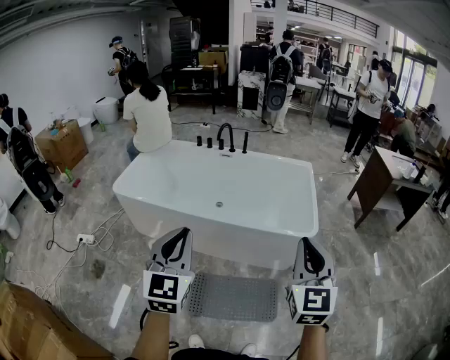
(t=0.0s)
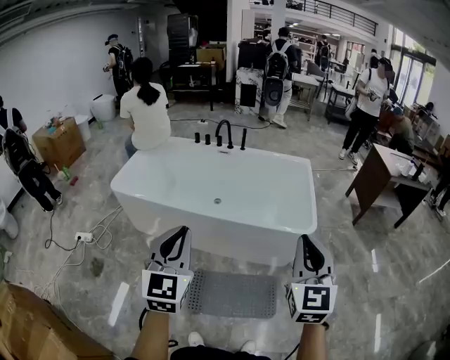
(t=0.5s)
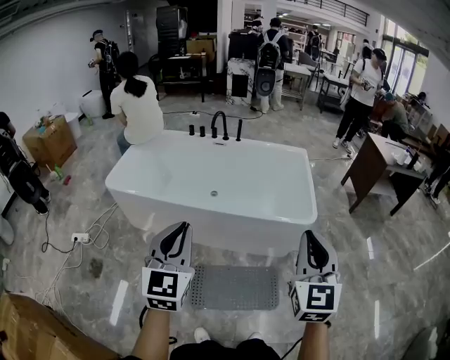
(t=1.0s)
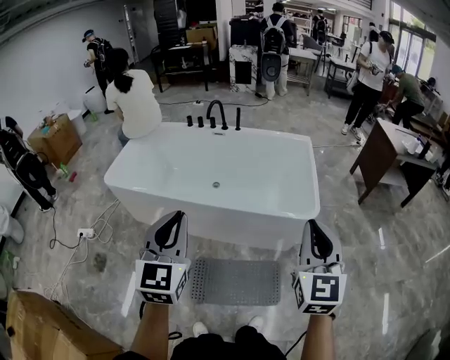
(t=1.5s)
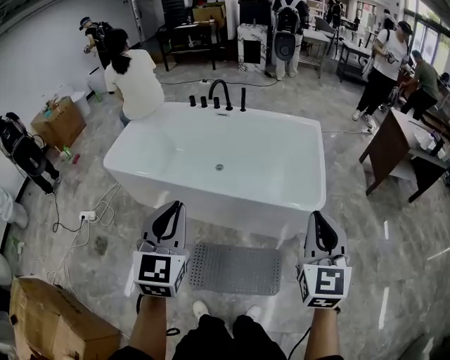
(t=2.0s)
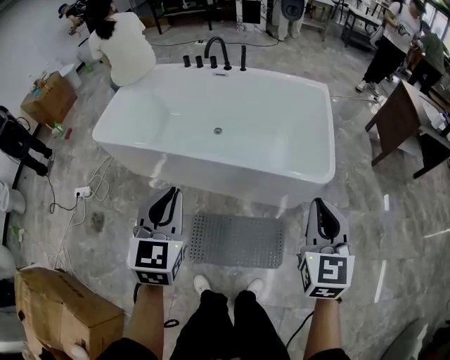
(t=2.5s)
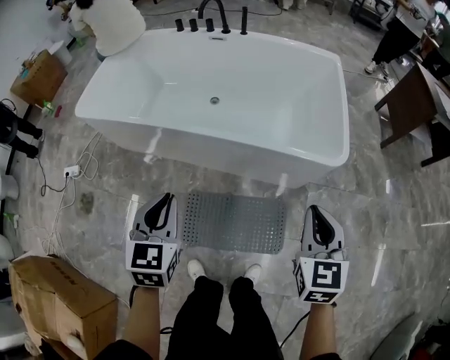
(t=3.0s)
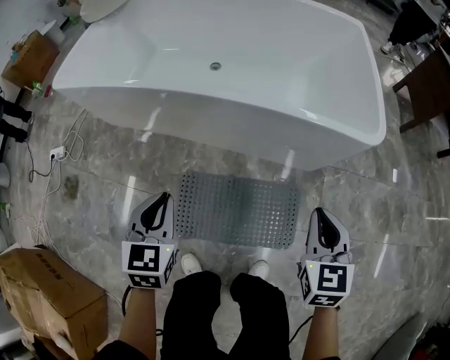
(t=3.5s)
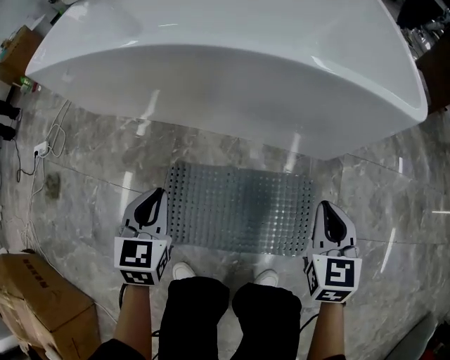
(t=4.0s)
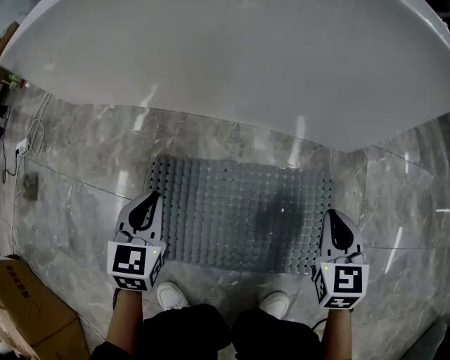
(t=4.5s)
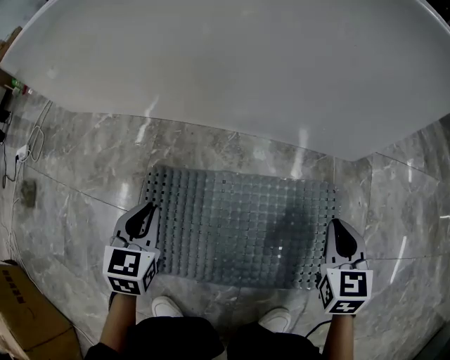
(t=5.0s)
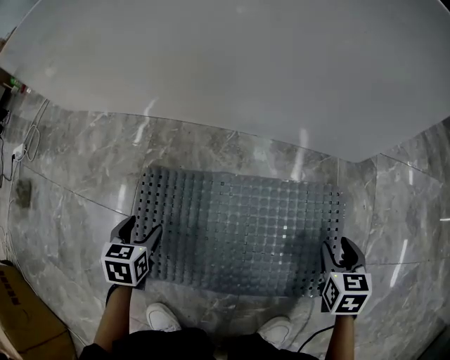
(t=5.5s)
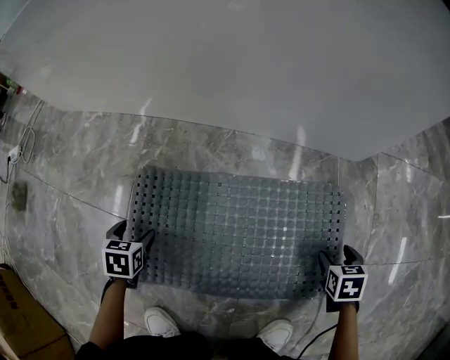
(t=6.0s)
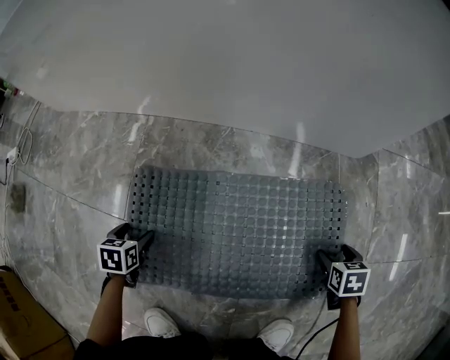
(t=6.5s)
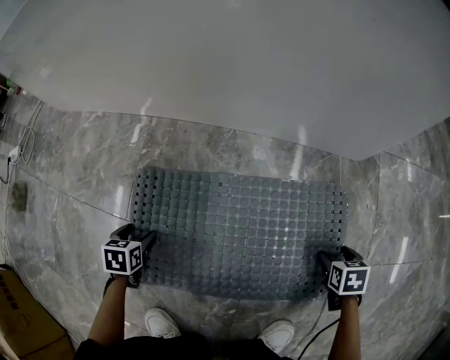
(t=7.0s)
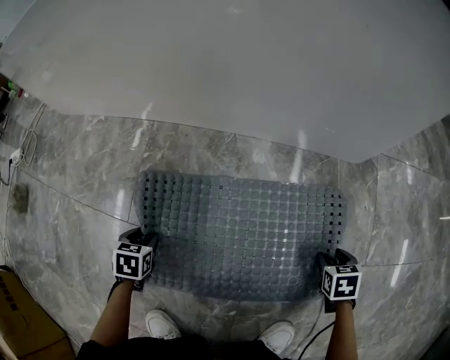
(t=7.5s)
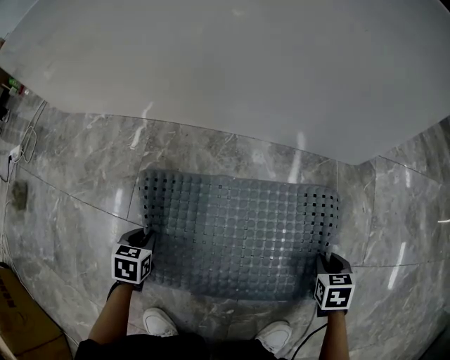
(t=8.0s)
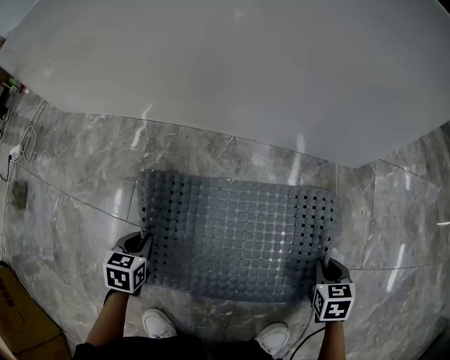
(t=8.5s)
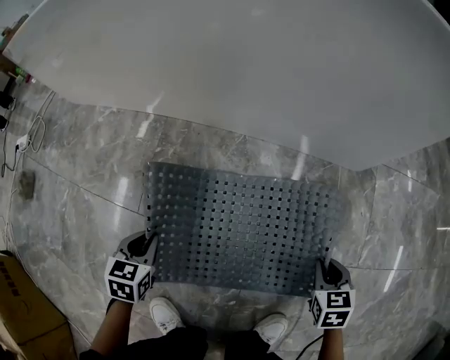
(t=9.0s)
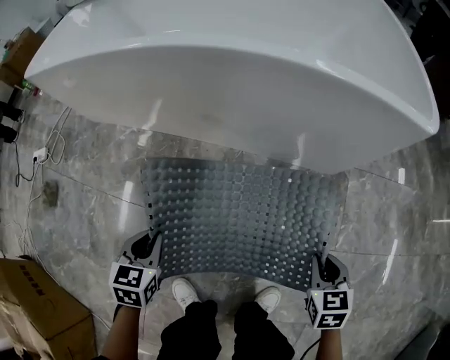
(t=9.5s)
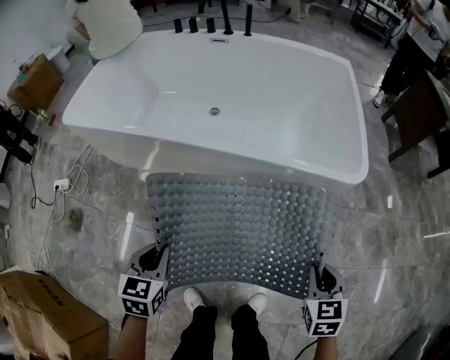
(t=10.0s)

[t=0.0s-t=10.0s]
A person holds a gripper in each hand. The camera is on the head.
t=0.0s to t=2.0s: The left gripper travels forward by roughly 10 cm; the right gripper is displaced forward, to the right and downward by some 15 cm.
t=2.0s to t=4.0s: Both grippers move downward, some 60 cm. The left gripper turns by some 30 degrees, while the right gripper turns by approximately 30 degrees.
t=4.0s to t=6.0s: Both grippers travel together downward, about 40 cm. The left gripper angles its fingers downward, by some 30 degrees, and opens up. The right gripper angles its fingers downward, by roughly 40 degrees, and opens up.
t=6.0s to t=8.0s: The left gripper closes its fingers; the right gripper closes its fingers.
t=8.0s to t=10.0s: Both grippers move upward, about 60 cm. The left gripper turns by roughly 20 degrees, while the right gripper turns by about 20 degrees.

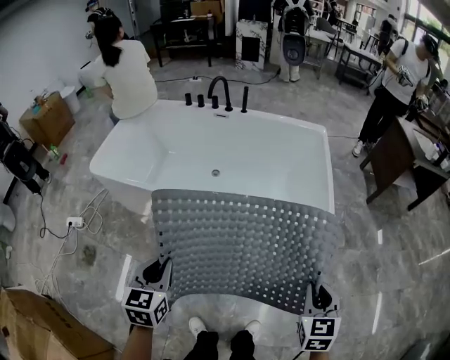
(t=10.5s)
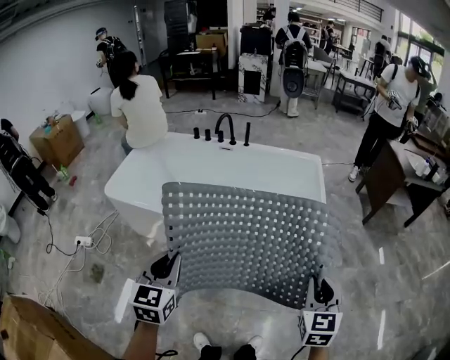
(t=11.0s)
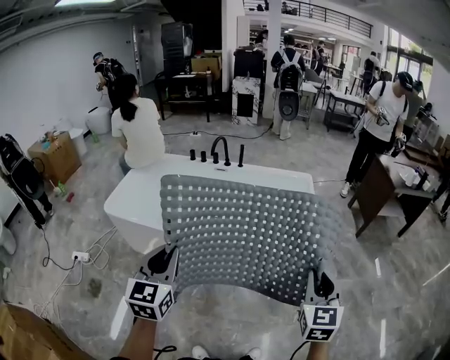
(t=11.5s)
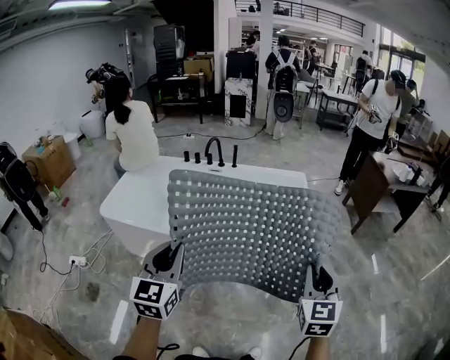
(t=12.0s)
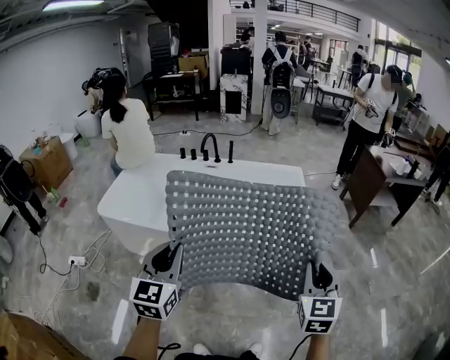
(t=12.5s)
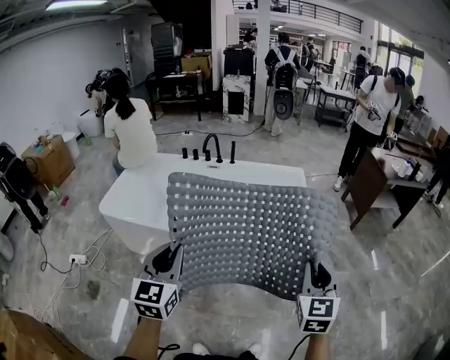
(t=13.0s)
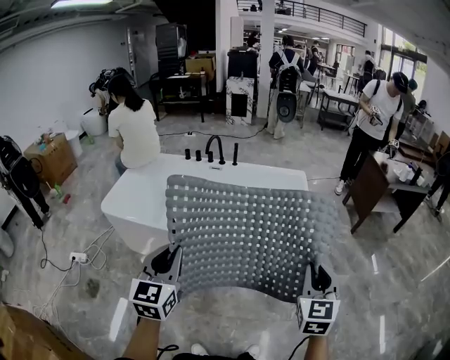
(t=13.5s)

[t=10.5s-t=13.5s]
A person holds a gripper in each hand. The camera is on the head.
t=10.5s to t=12.0s: The two grippers go some 20 cm upward. The right gripper changes its angle by about 20 degrees. Meanwhile the left gripper rotates about 30 degrees.
t=12.0s to t=13.5s: The grippers make only small movements.

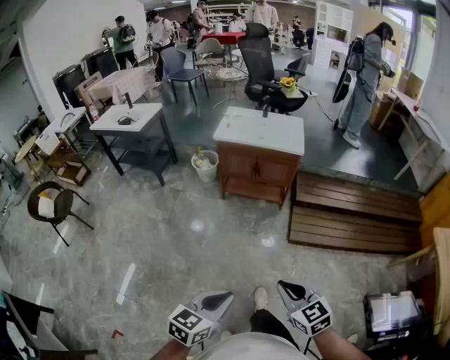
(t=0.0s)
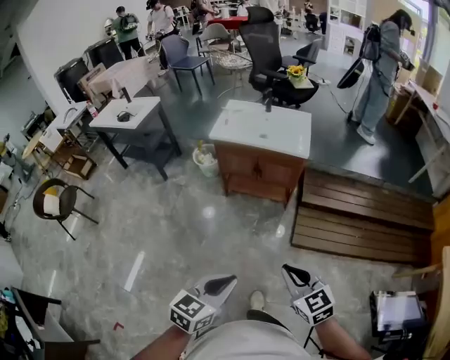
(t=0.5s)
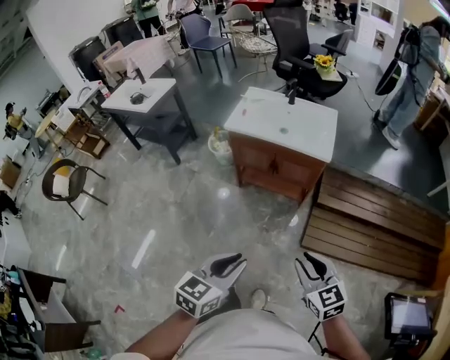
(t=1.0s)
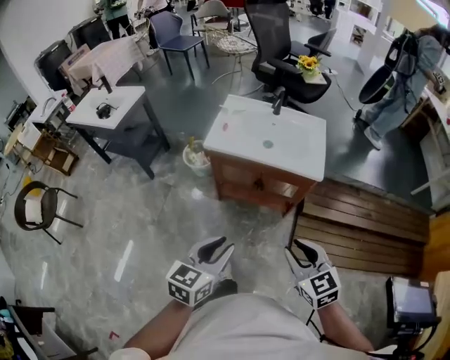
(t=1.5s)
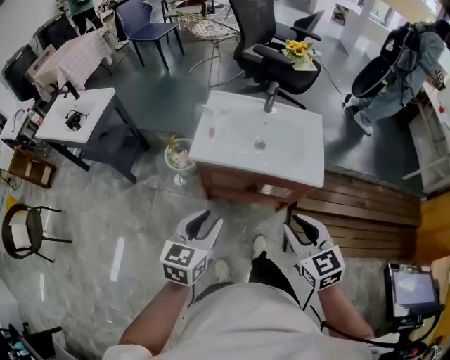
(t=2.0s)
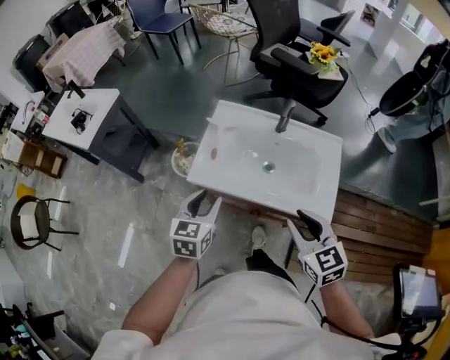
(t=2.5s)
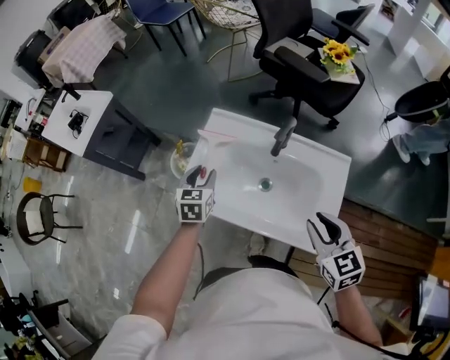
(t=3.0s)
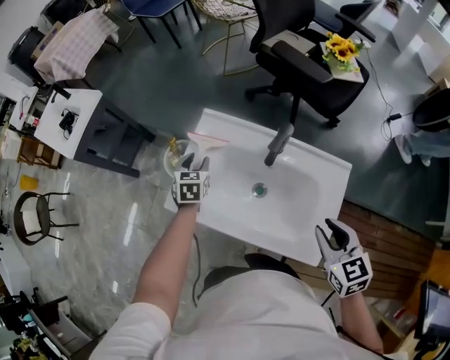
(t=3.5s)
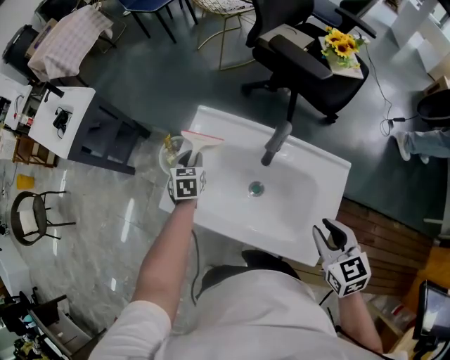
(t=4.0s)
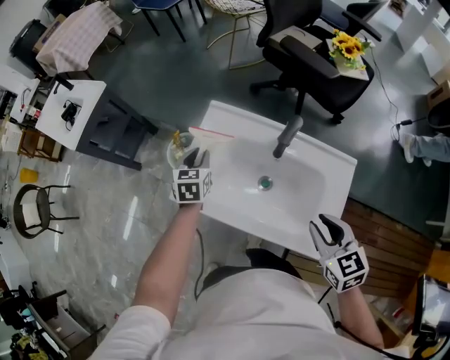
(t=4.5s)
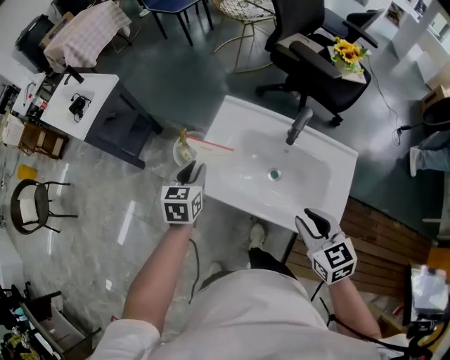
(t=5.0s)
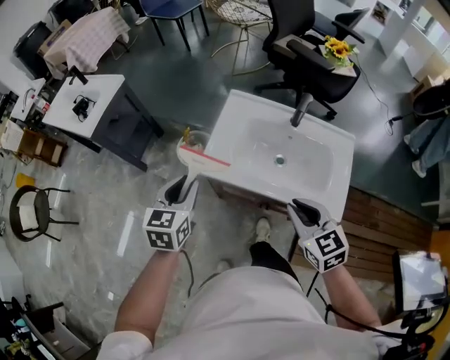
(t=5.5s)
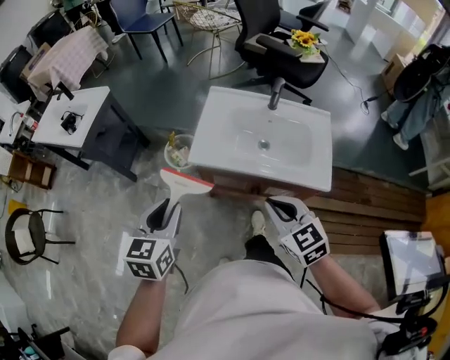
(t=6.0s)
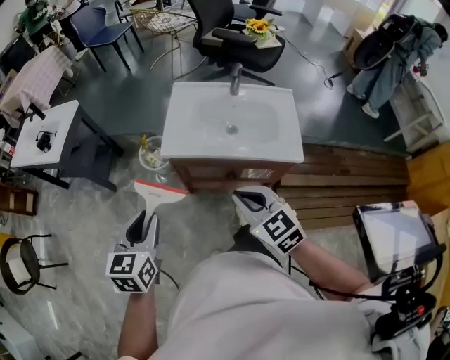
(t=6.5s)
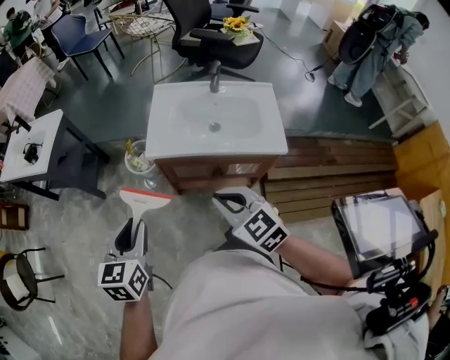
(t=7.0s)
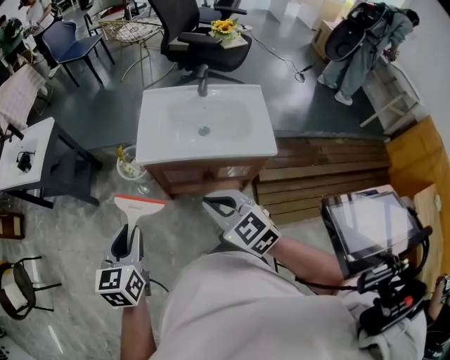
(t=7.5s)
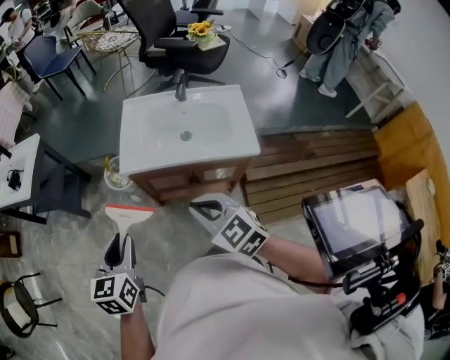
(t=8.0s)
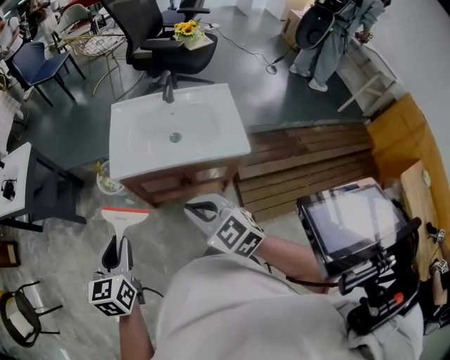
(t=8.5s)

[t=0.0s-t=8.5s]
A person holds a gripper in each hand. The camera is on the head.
t=0.0s to t=2.0s: The two grippers travel together, forward, approximately 70 cm. The left gripper opens its fingers. The right gripper opens up.
t=2.0s to t=4.0s: The pair of grippers is taken forward and to the right, some 40 cm. The left gripper travels downward by some 20 cm, and changes its angle by about 40 degrees.
t=4.0s to t=6.5s: The two grippers travel together, backward and to the left, roughly 40 cm. The left gripper heads upward, covering some 25 cm, and changes its angle by about 20 degrees, while the right gripper closes.
t=6.5s to t=8.5s: The grippers stay close to where they were, moving slightly.

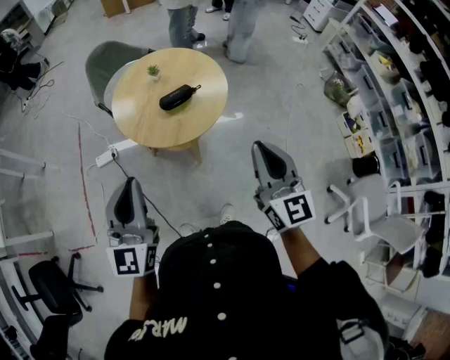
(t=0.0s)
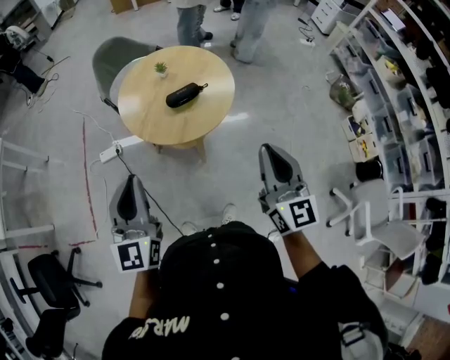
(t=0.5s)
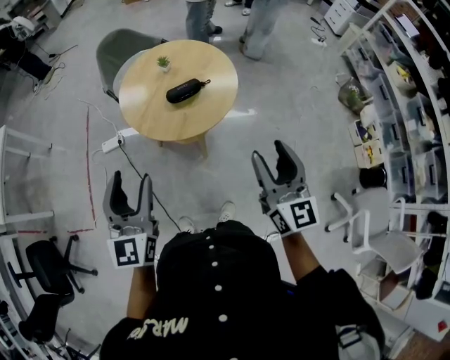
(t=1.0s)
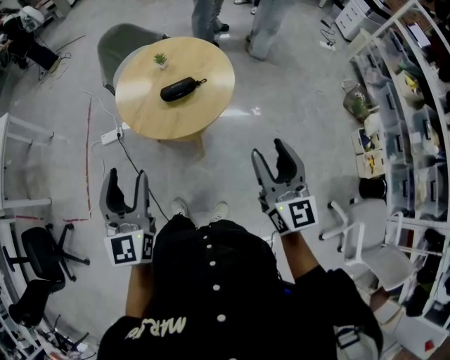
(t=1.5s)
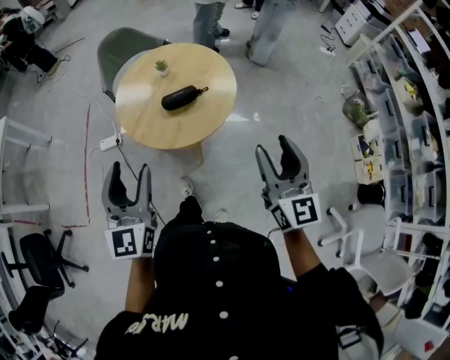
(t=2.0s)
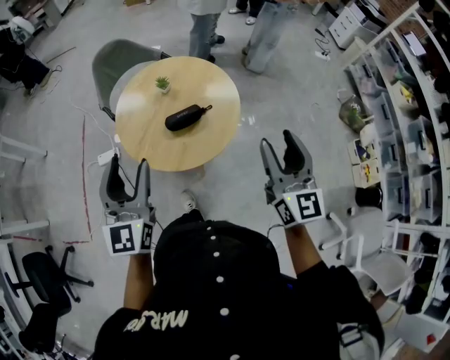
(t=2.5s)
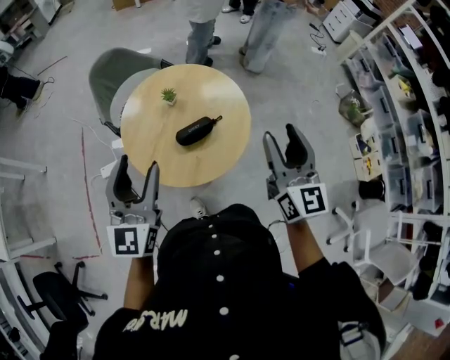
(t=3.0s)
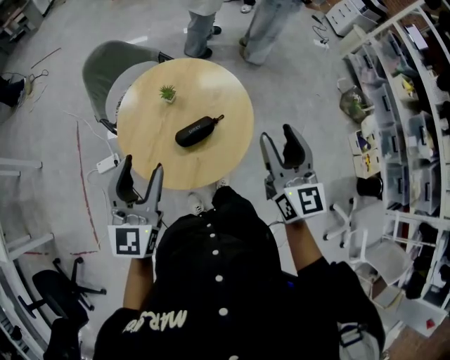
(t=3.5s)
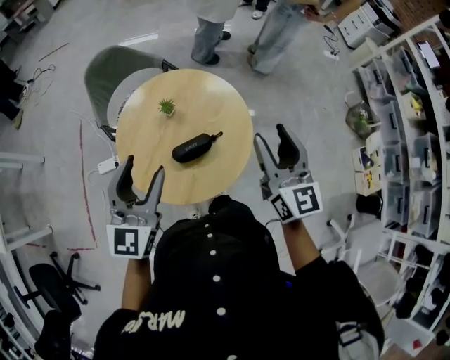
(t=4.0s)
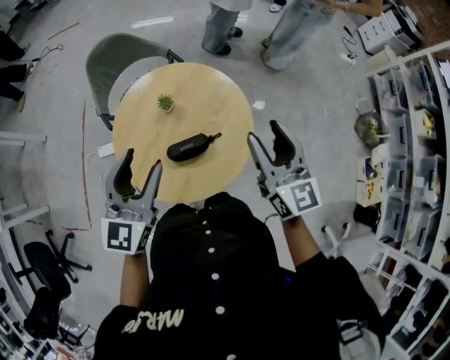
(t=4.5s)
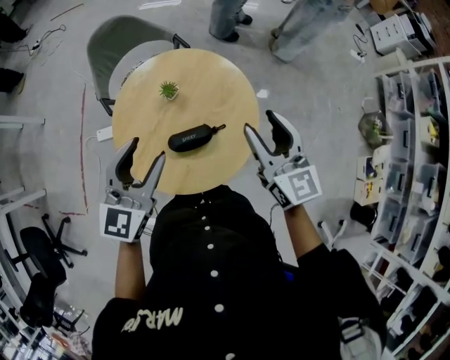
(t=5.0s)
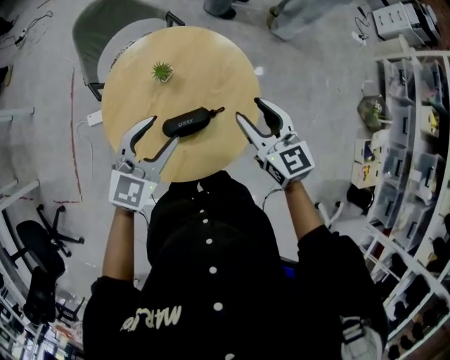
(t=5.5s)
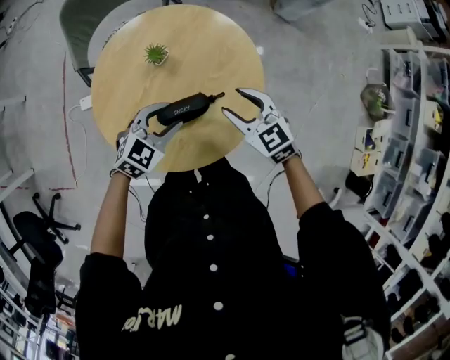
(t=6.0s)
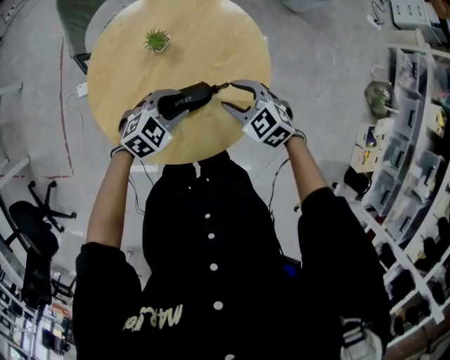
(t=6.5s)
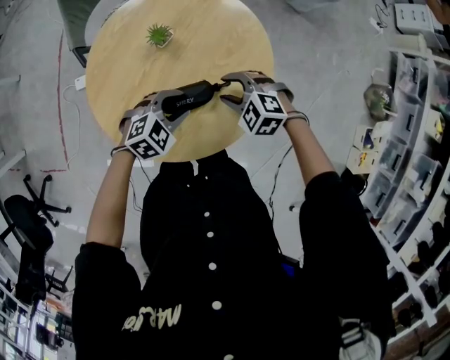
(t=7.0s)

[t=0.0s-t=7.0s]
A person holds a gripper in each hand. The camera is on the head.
t=0.0s to t=2.0s: Both grippers travel together to the right and forward, roughly 10 cm. The right gripper opens. The left gripper opens its fingers.
t=2.0s to t=3.5s: The right gripper is displaced forward and to the left by roughly 25 cm, while the left gripper goes about 25 cm forward.
t=3.5s to t=5.0s: The right gripper is displaced forward by roughly 15 cm, and swivels roughly 20 degrees. The left gripper travels forward, to the right and downward by some 15 cm.
t=5.0s to t=7.0s: Both grippers move downward, approximately 30 cm. The left gripper tilts its fingers approximately 40 degrees downward. Meanwhile the right gripper angles its fingers downward, by approximately 50 degrees.
